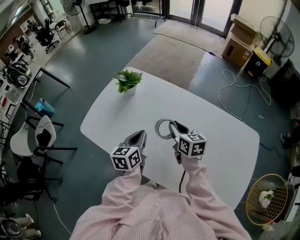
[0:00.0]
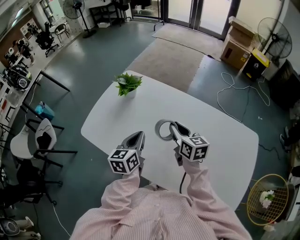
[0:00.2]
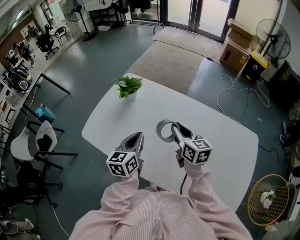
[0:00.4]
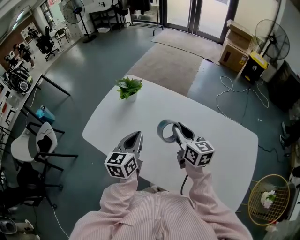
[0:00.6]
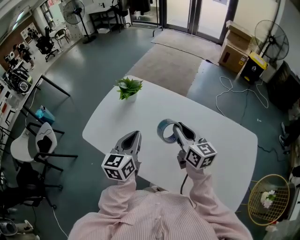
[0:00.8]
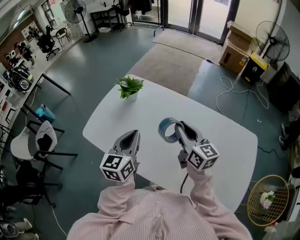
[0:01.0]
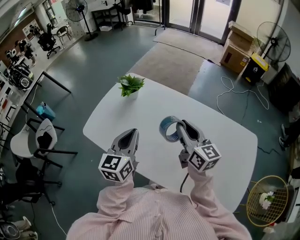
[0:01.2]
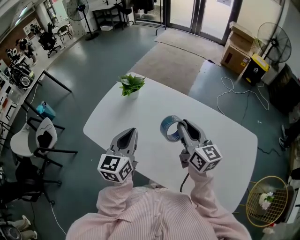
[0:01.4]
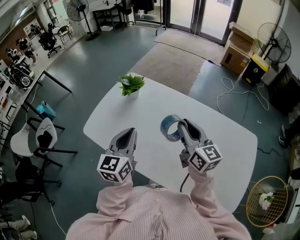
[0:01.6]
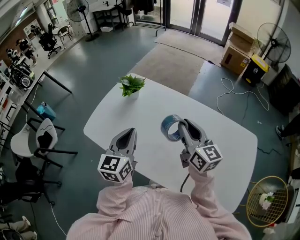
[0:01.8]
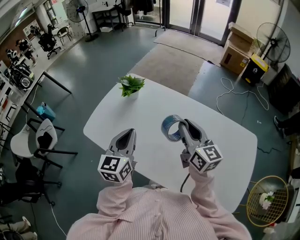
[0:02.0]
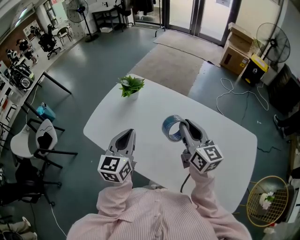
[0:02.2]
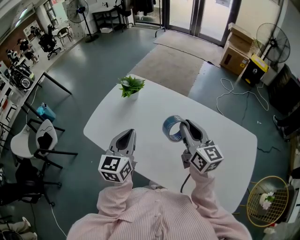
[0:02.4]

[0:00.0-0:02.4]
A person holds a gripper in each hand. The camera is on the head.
0:00.0 to 0:01.2: Both grippers move upward, some 10 cm. The right gripper swivels approximately 20 degrees.
0:01.2 to 0:02.4: The grippers make only small movements.

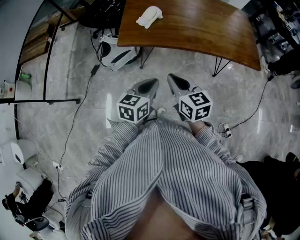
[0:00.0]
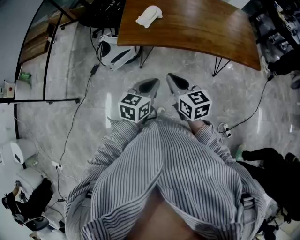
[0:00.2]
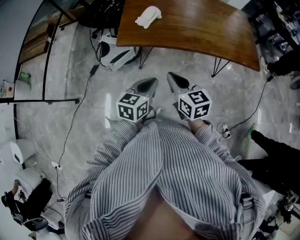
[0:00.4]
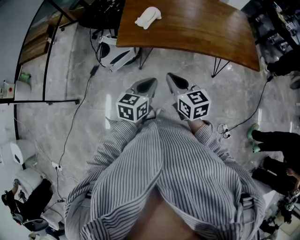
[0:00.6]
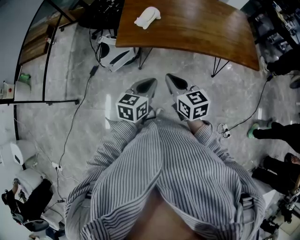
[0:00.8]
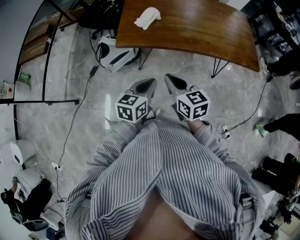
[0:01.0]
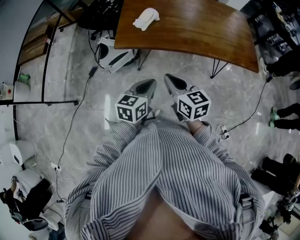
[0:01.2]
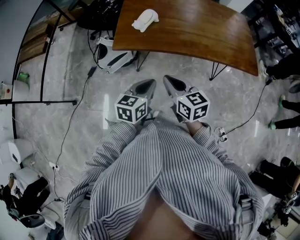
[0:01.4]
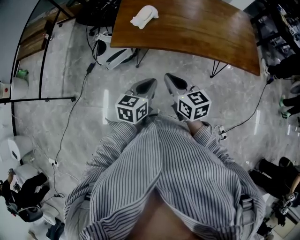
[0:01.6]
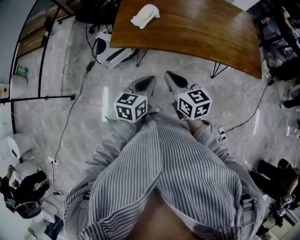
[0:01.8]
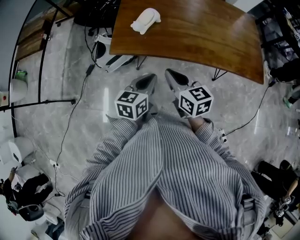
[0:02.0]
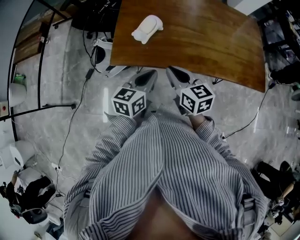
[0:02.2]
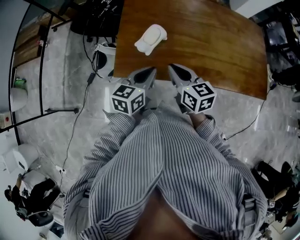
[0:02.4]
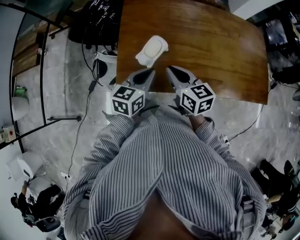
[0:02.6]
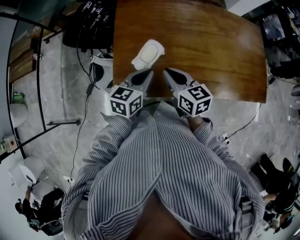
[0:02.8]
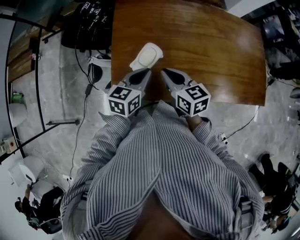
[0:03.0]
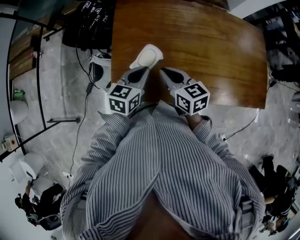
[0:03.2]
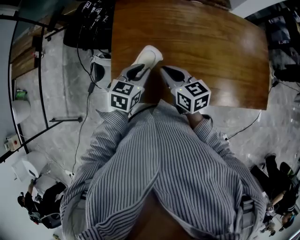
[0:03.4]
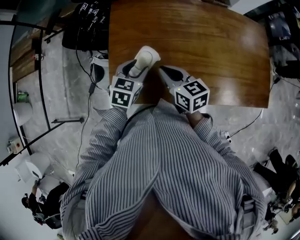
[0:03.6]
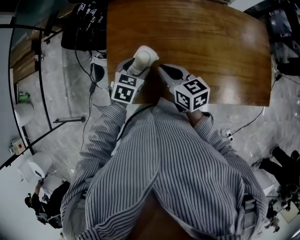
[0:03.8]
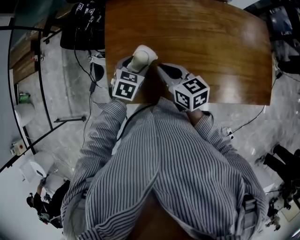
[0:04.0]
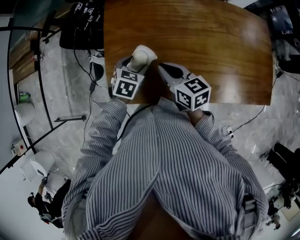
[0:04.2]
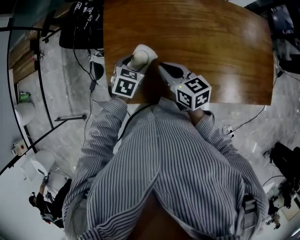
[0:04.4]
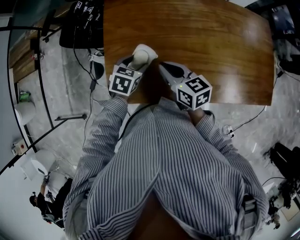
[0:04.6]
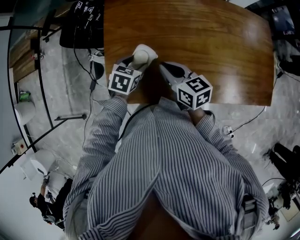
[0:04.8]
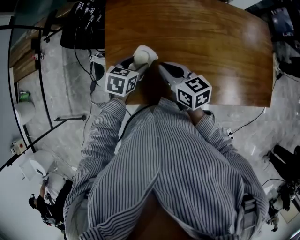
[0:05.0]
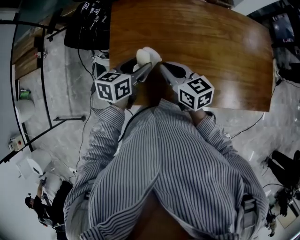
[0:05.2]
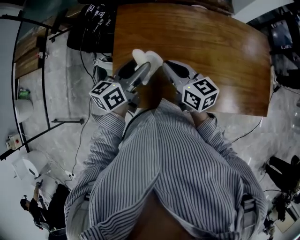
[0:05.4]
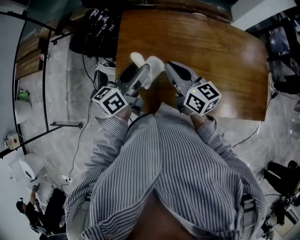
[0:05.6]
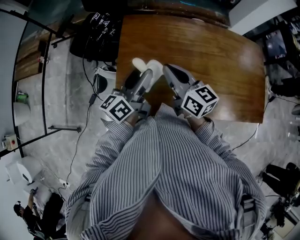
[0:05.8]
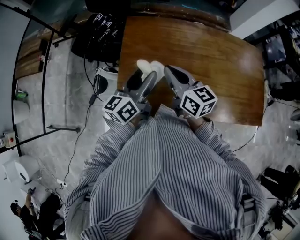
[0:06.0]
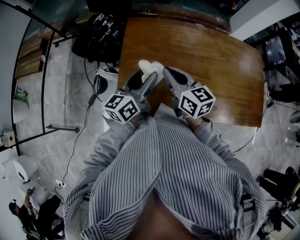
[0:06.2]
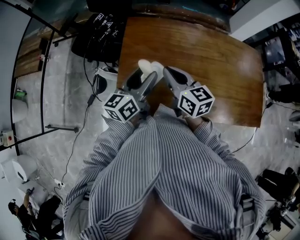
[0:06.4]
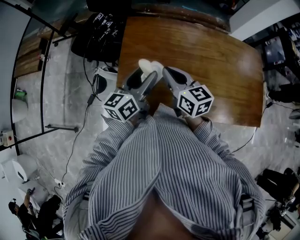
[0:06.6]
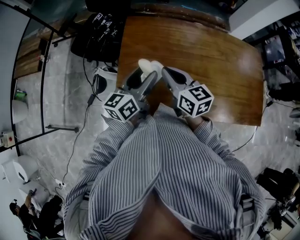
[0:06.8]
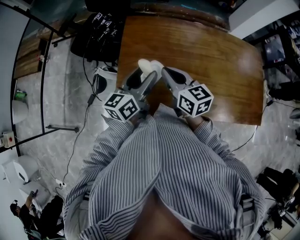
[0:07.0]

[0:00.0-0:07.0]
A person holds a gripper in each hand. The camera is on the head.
0:00.0 to 0:01.4: The grippers stay close to where they were, moving slightly.
0:01.4 to 0:02.8: Both grippers move forward, roughly 30 cm.
0:02.8 to 0:04.2: The right gripper shifts roughly 5 cm forward. Meanwhile the left gripper travels forward and downward by some 10 cm, swivels approximately 40 degrees, and opens up.
0:04.2 to 0:05.6: The right gripper shifts about 10 cm upward; the left gripper moves upward, roughly 15 cm, and tips its fingers upward by about 50 degrees.
0:05.6 to 0:07.0: There are only small adjustments of the grippers.

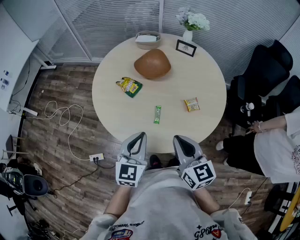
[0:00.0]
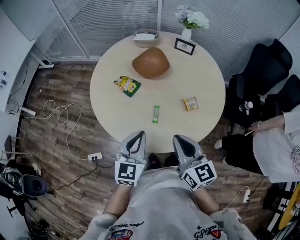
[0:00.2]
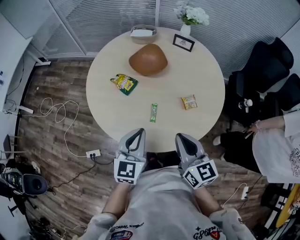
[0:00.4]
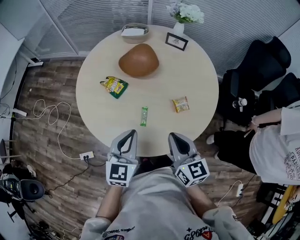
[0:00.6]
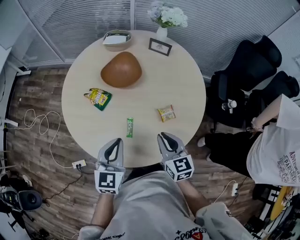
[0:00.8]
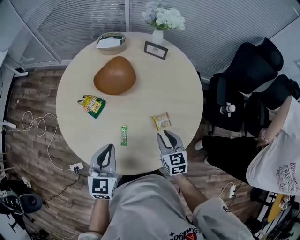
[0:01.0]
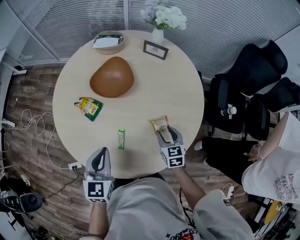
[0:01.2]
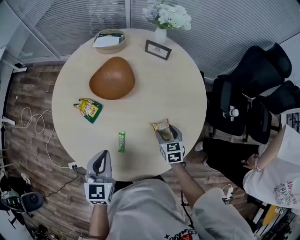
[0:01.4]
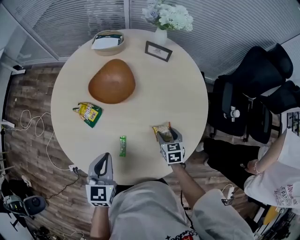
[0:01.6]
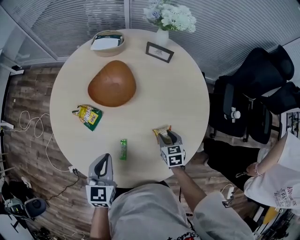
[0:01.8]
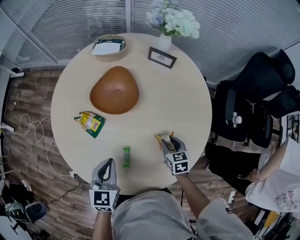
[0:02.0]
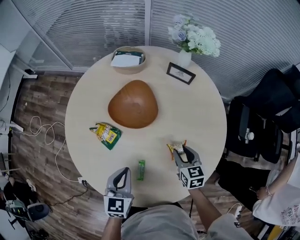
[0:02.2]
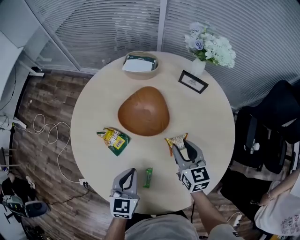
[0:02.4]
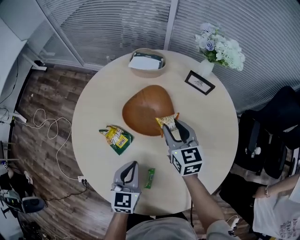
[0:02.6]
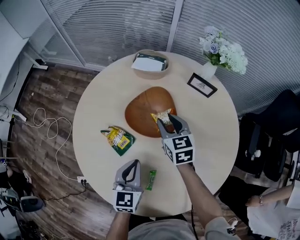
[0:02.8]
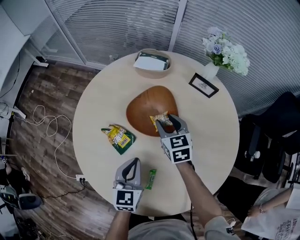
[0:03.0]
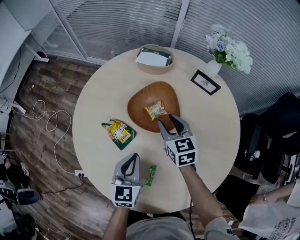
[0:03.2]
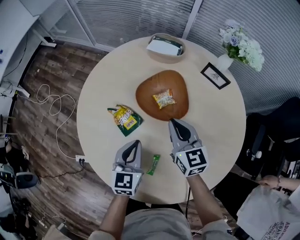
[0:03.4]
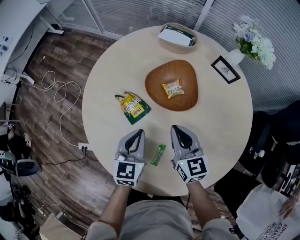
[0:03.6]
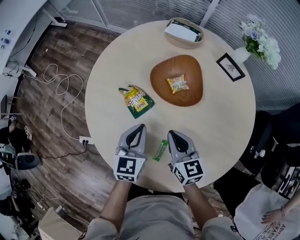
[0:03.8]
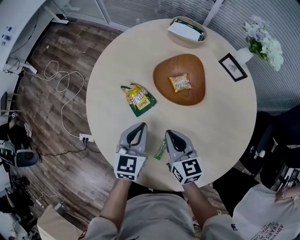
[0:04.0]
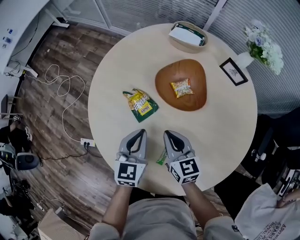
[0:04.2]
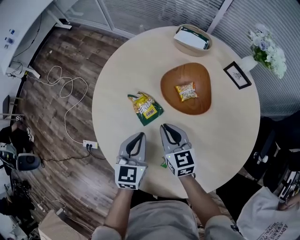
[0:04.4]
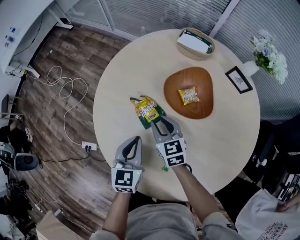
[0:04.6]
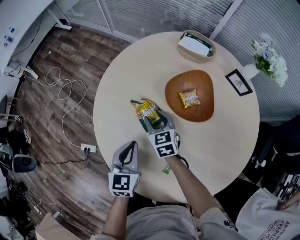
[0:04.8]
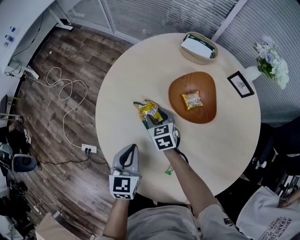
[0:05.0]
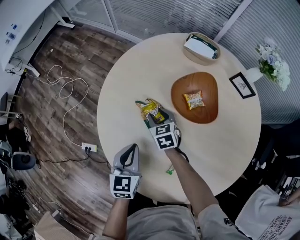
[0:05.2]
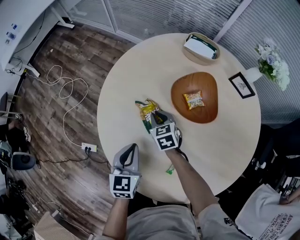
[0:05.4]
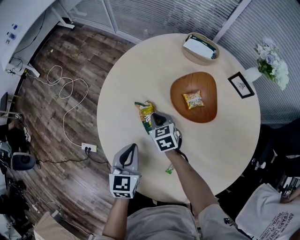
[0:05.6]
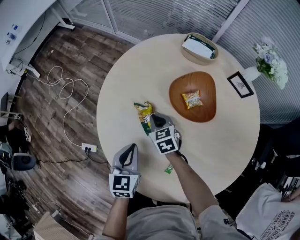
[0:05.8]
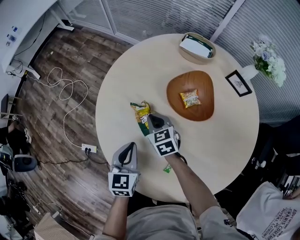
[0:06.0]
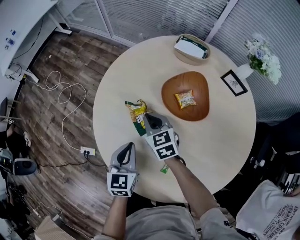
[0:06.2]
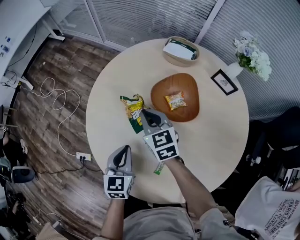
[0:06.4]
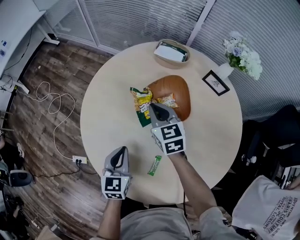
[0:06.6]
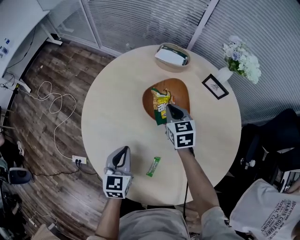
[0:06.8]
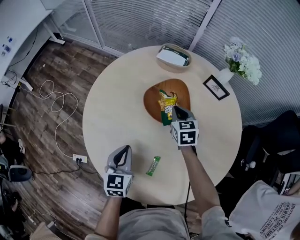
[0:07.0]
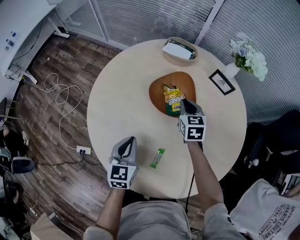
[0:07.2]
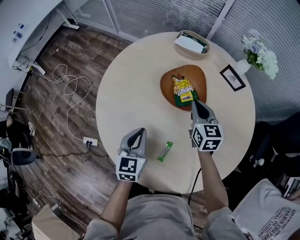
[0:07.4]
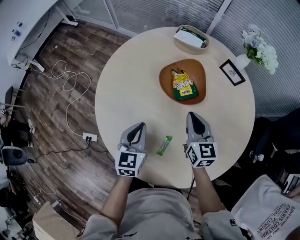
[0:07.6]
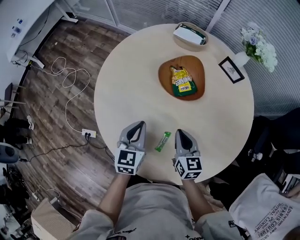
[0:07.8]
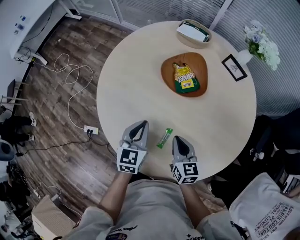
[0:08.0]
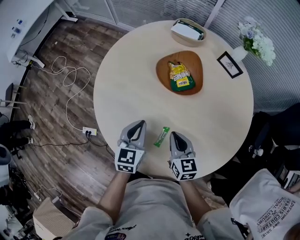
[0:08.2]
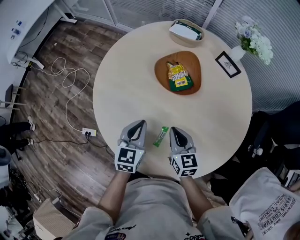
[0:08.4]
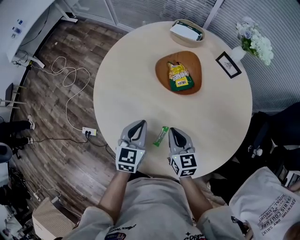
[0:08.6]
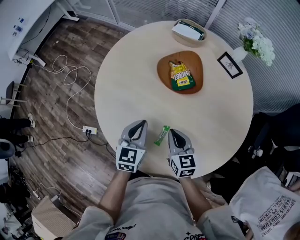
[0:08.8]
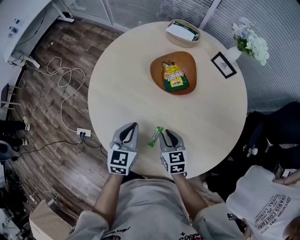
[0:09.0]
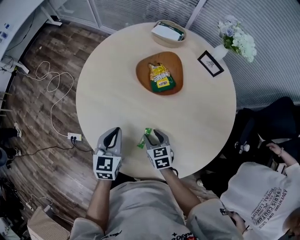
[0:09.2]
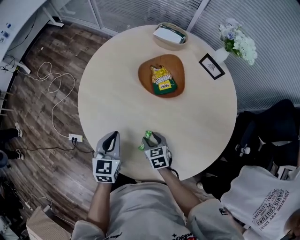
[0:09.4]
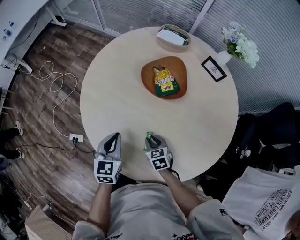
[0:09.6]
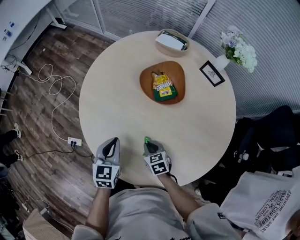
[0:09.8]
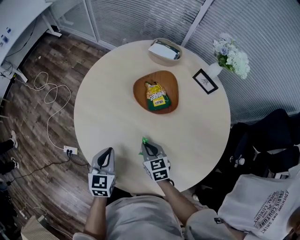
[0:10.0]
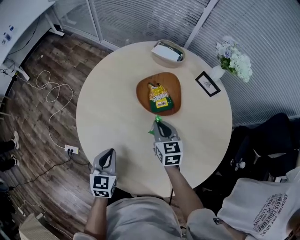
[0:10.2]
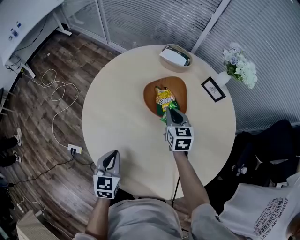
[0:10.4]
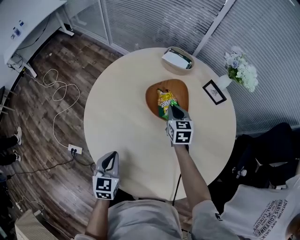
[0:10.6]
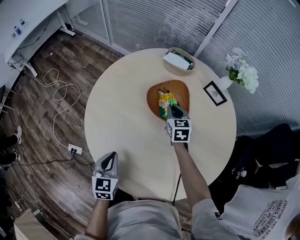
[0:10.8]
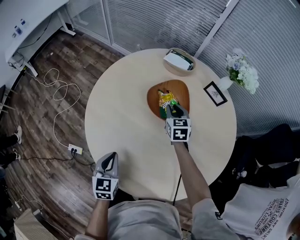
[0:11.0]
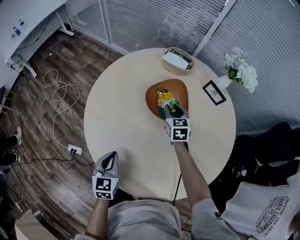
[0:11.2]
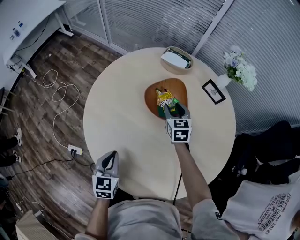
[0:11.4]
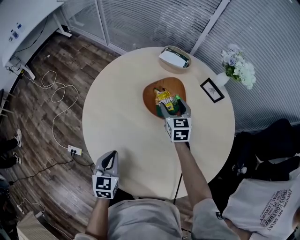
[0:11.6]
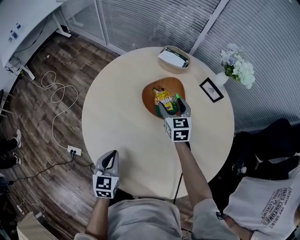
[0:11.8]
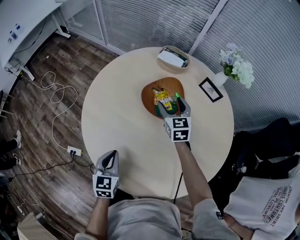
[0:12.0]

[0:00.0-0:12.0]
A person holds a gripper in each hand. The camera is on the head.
0:00.0 to 0:01.6: The left gripper heads forward and downward, covering some 15 cm. Meanwhile the right gripper goes some 40 cm downward, forward and to the right, points its fingers about 30 degrees further downward, and opens up.
0:01.6 to 0:03.0: The right gripper heads forward, to the left and upward, covering approximately 35 cm, and turns by roughly 20 degrees; the left gripper shifts approximately 15 cm forward and downward.
0:03.0 to 0:04.4: The left gripper shifts about 10 cm to the left; the right gripper heads to the left and backward, covering some 20 cm.
0:04.4 to 0:06.0: The right gripper goes about 10 cm to the left, forward and downward. The left gripper shifts some 5 cm to the left.
0:06.0 to 0:07.6: The right gripper shifts some 25 cm to the right and upward, and swivels roughly 30 degrees, while the left gripper is displaced to the right by some 5 cm.
0:07.6 to 0:09.0: The right gripper goes about 15 cm backward and downward.
0:09.0 to 0:10.4: The right gripper shifts about 20 cm forward. Meanwhile the left gripper changes place by about 5 cm.
0:10.4 to 0:12.0: The right gripper opens its fingers.

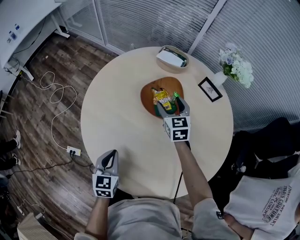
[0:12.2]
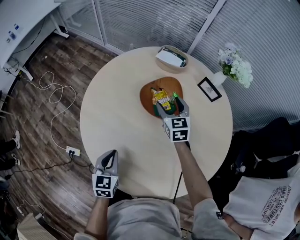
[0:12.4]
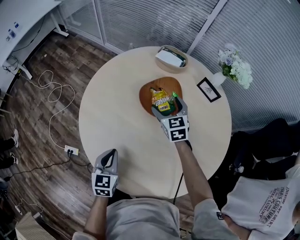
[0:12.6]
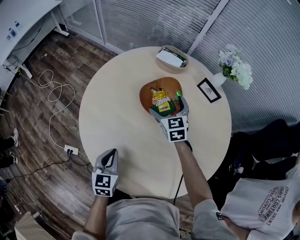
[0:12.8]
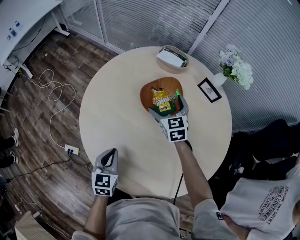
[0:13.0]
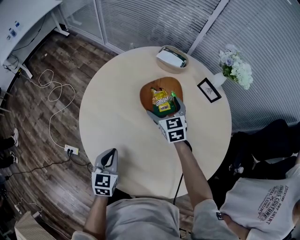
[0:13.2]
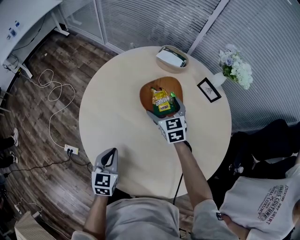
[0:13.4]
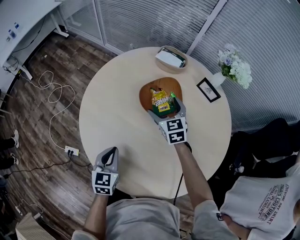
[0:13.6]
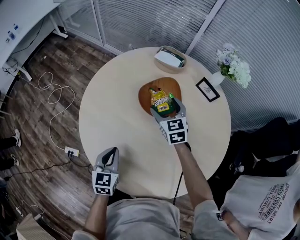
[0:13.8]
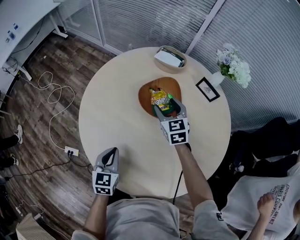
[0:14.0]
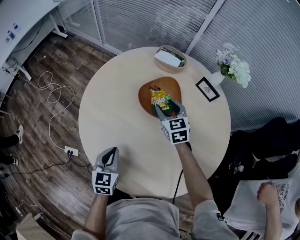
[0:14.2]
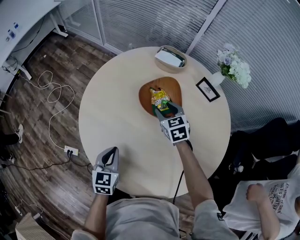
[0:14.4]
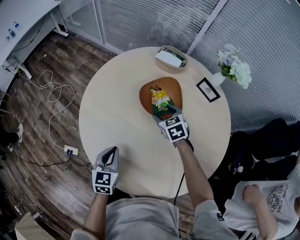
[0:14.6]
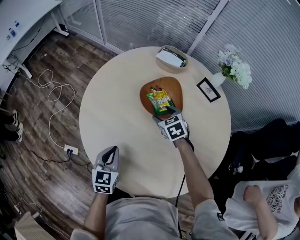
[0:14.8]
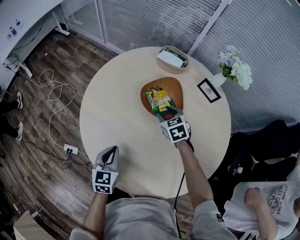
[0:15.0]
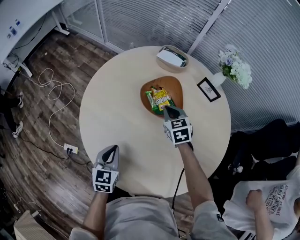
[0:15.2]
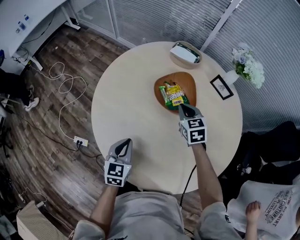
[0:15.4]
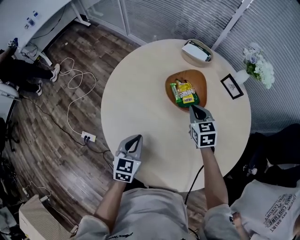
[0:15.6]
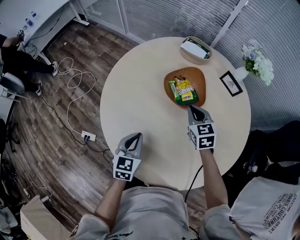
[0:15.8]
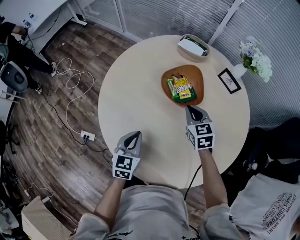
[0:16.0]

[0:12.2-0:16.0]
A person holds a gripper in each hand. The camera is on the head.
0:12.2 to 0:13.4: The right gripper opens up.
0:13.4 to 0:14.8: The right gripper travels downward by approximately 5 cm, turns by roughly 20 degrees, and closes its fingers.
0:14.8 to 0:16.0: The right gripper goes roughly 5 cm upward, and closes.
